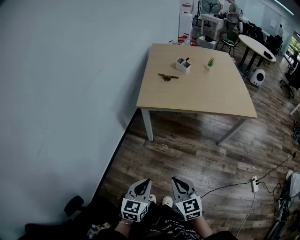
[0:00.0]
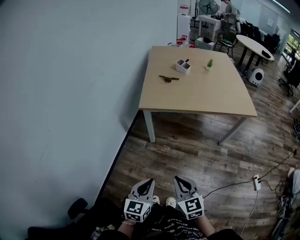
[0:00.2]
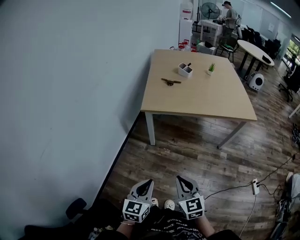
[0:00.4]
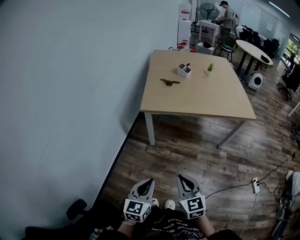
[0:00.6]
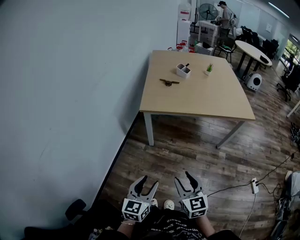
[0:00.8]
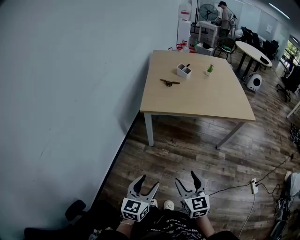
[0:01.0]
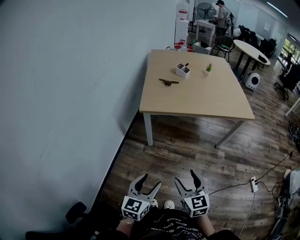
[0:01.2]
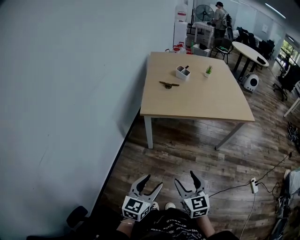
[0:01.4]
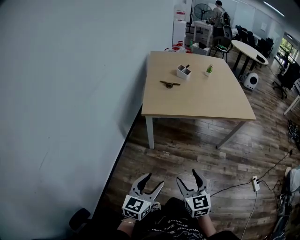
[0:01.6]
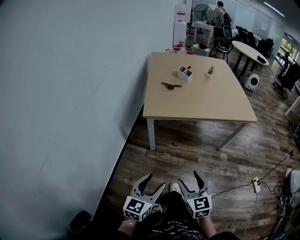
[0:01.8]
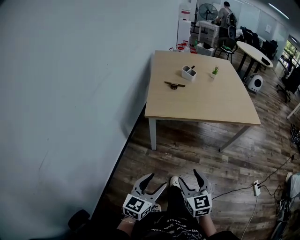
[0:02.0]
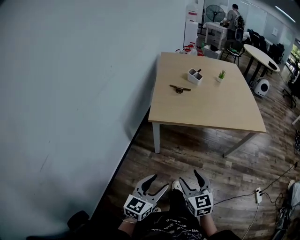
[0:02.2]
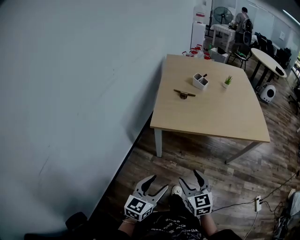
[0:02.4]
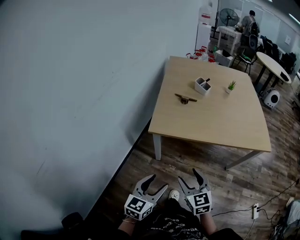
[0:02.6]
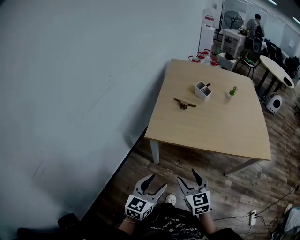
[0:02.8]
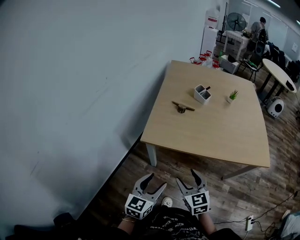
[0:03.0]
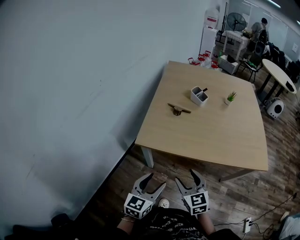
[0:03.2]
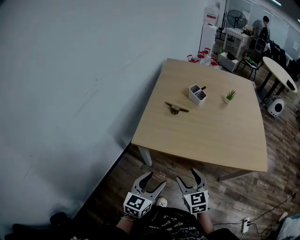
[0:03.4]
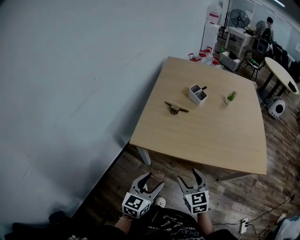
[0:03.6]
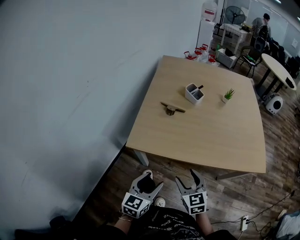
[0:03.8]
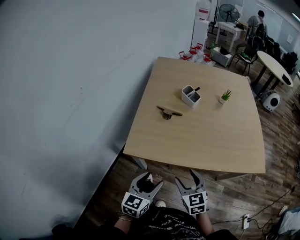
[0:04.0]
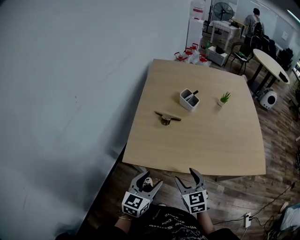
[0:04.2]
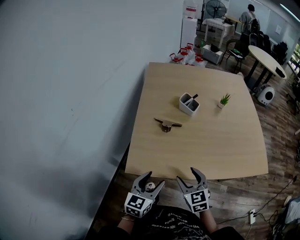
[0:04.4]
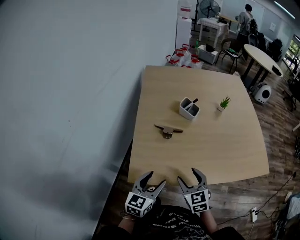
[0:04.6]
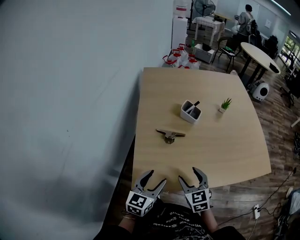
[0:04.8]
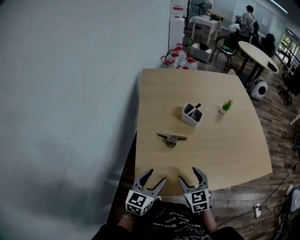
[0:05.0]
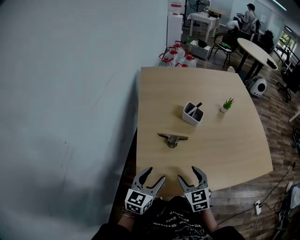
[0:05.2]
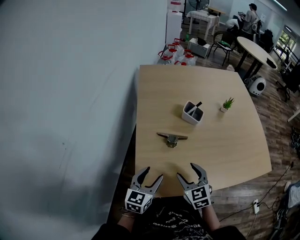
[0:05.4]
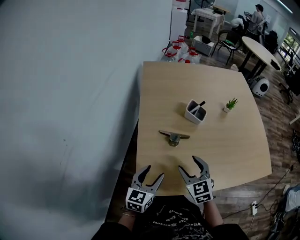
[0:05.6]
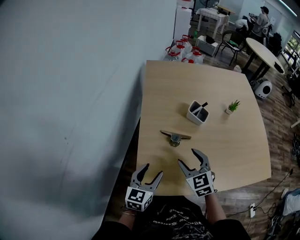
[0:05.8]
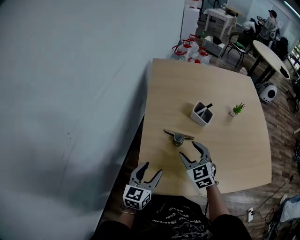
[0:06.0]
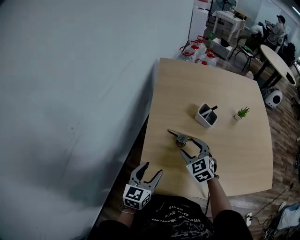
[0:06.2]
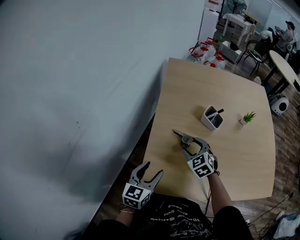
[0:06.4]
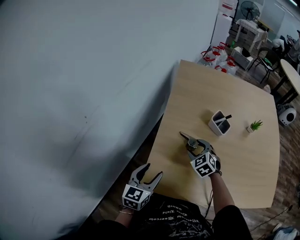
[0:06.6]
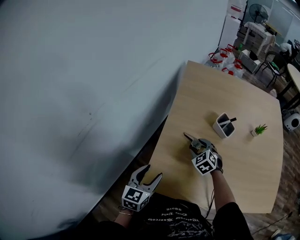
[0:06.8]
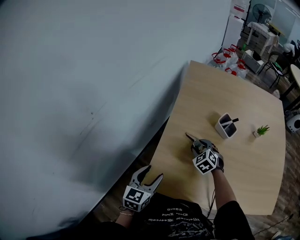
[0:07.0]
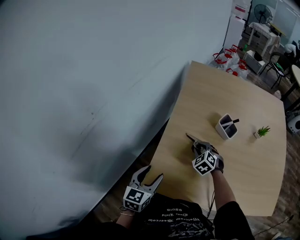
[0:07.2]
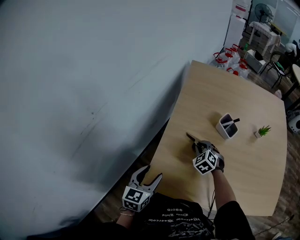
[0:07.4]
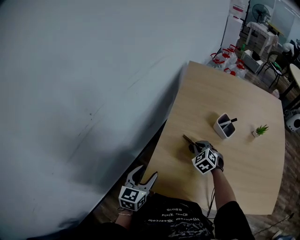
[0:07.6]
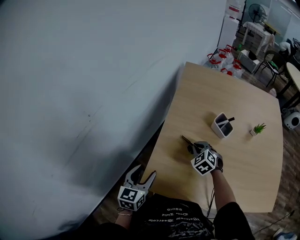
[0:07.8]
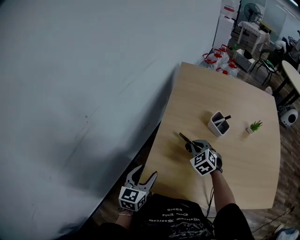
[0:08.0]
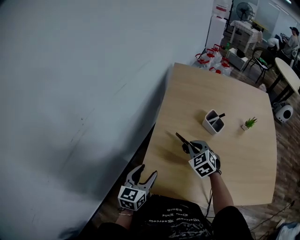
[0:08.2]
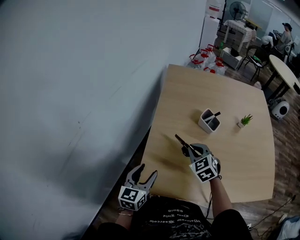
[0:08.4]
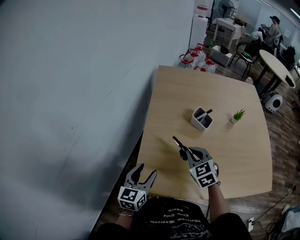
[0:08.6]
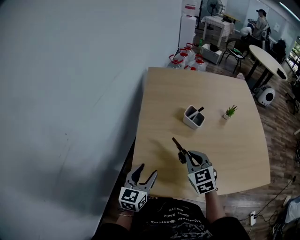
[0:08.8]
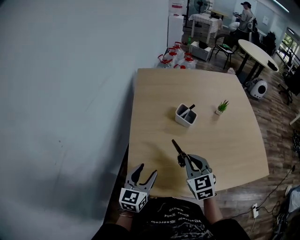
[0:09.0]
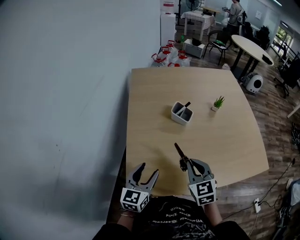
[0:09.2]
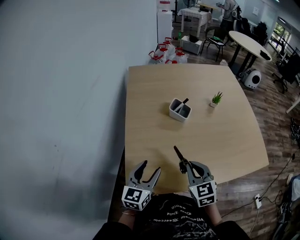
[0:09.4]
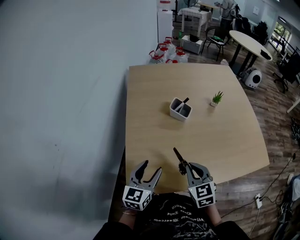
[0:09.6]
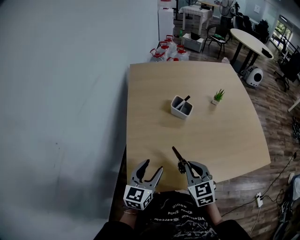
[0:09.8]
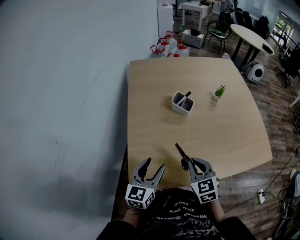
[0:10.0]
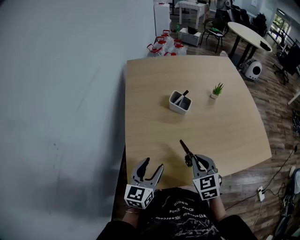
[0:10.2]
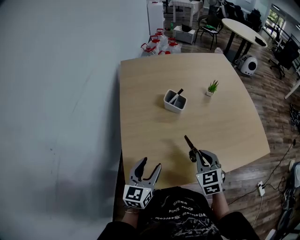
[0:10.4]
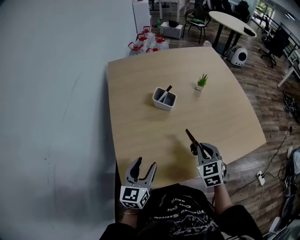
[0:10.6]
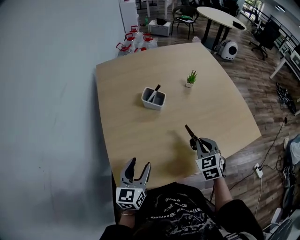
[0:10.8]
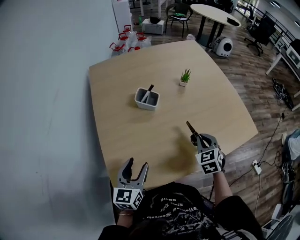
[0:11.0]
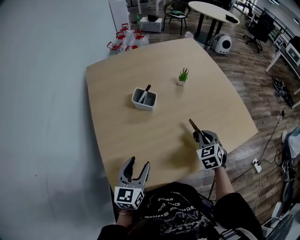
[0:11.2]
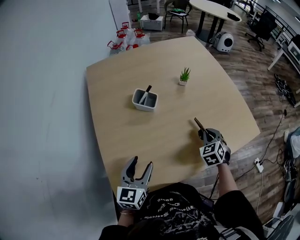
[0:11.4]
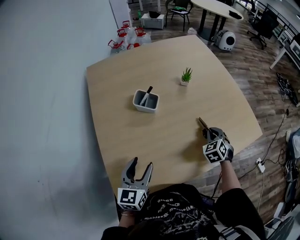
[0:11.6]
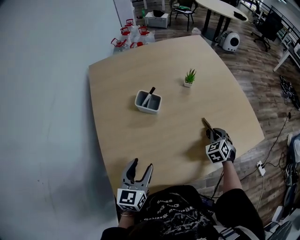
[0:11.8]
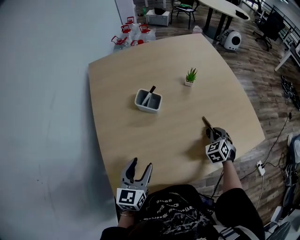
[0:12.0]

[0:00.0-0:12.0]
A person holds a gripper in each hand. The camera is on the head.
0.0 to 1.6 s: The right gripper opens up. The left gripper moves roughly 5 cm, and opens its fingers.
1.6 to 3.0 s: The two grippers go roughly 25 cm forward.
3.0 to 4.4 s: Both grippers travel together forward, about 20 cm.
4.4 to 6.0 s: Both grippers move forward and to the left, some 20 cm.
6.0 to 7.6 s: The left gripper shifts some 5 cm to the left, while the right gripper moves downward and forward, some 10 cm, rotates about 30 degrees, and closes up.
7.6 to 9.0 s: The right gripper is displaced upward, backward and to the right by roughly 20 cm, and rotates about 40 degrees; the left gripper goes approximately 10 cm to the right, and swivels approximately 20 degrees.
9.0 to 10.4 s: The right gripper moves to the right, approximately 10 cm.
10.4 to 12.0 s: The right gripper heads to the right, forward and downward, covering approximately 30 cm, and rotates approximately 30 degrees; the left gripper heads forward, covering roughly 10 cm.

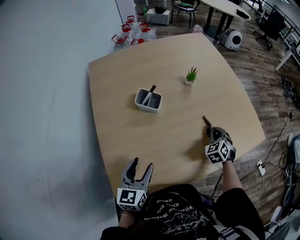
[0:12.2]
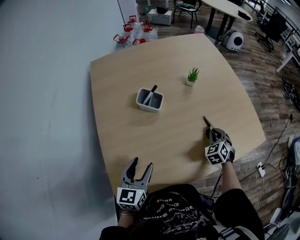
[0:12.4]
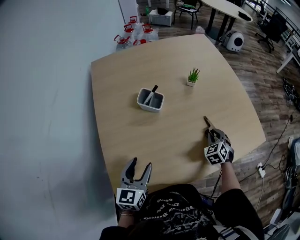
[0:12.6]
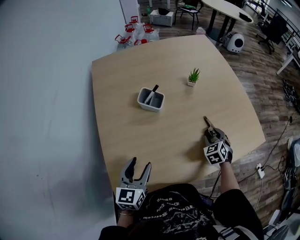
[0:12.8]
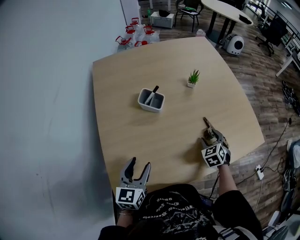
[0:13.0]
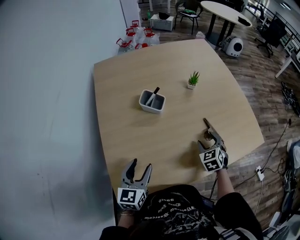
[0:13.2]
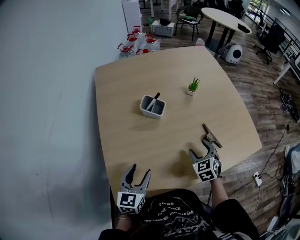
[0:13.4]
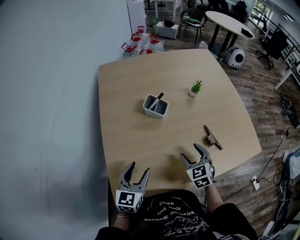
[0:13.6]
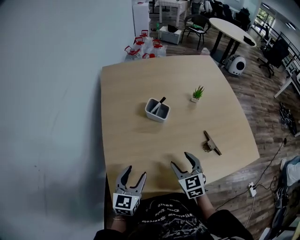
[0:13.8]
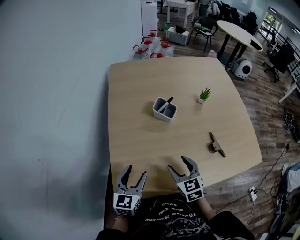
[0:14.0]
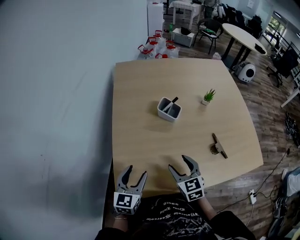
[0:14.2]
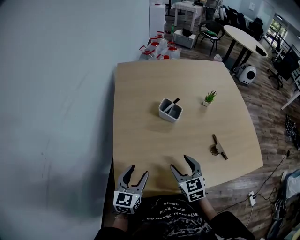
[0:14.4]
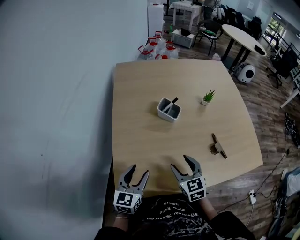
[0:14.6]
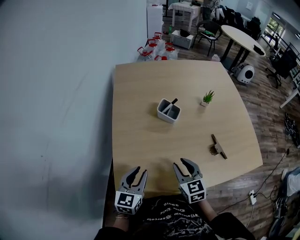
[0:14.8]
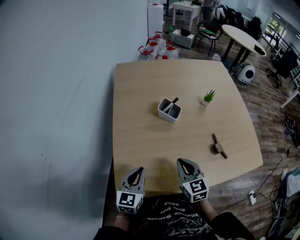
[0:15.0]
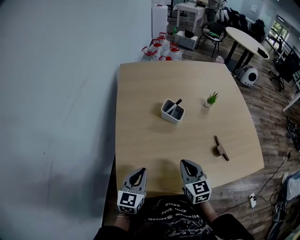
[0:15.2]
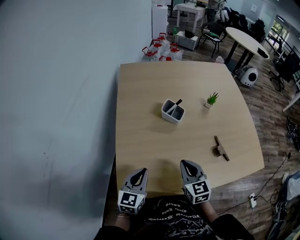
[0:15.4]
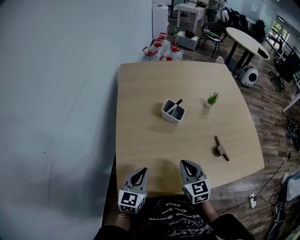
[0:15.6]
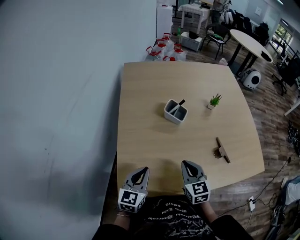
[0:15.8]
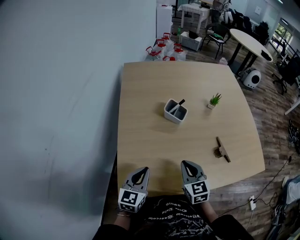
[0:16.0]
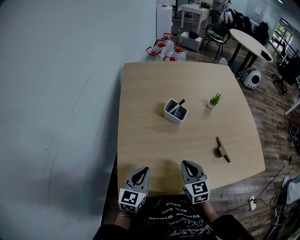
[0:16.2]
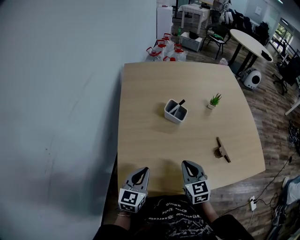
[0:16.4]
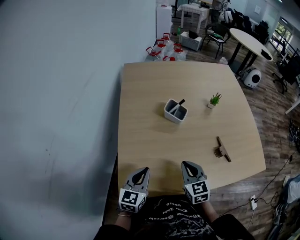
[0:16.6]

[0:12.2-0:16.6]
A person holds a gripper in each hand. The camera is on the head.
12.2 to 13.6 s: The right gripper travels to the left and backward by roughly 20 cm, turns by approximately 30 degrees, and opens its fingers.
13.6 to 15.2 s: The left gripper ends up roughly 5 cm from where it was, and closes its fingers; the right gripper is displaced to the left by some 10 cm, changes its angle by roughly 20 degrees, and closes up.
15.2 to 16.6 s: The grippers stay close to where they were, moving slightly.

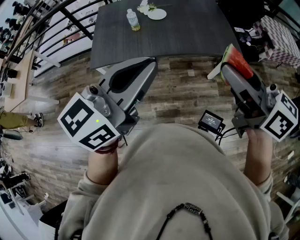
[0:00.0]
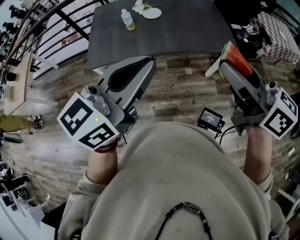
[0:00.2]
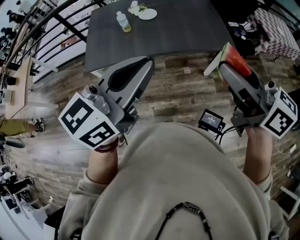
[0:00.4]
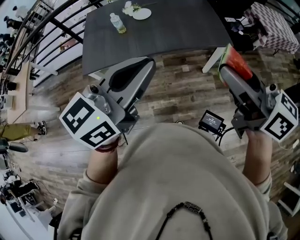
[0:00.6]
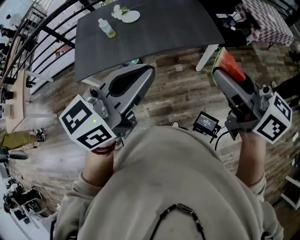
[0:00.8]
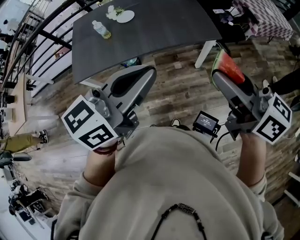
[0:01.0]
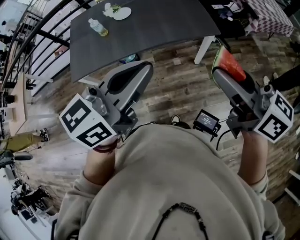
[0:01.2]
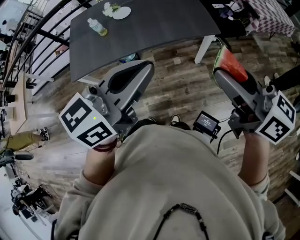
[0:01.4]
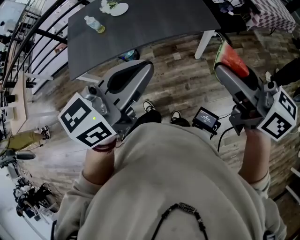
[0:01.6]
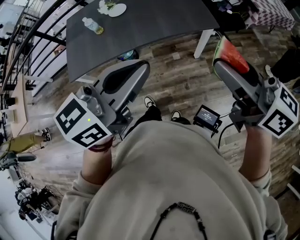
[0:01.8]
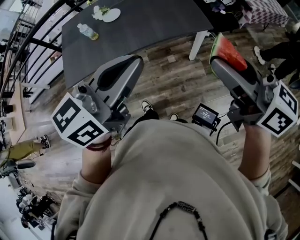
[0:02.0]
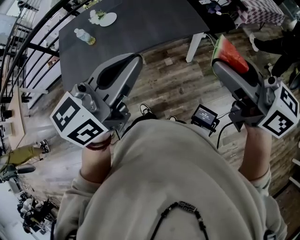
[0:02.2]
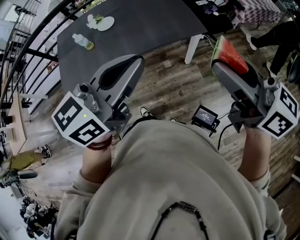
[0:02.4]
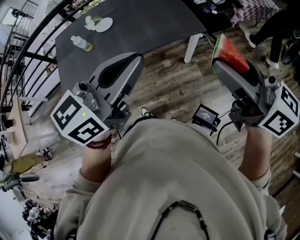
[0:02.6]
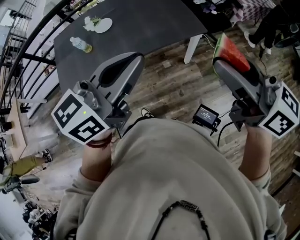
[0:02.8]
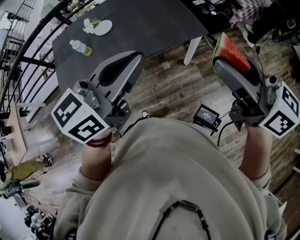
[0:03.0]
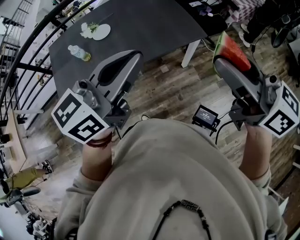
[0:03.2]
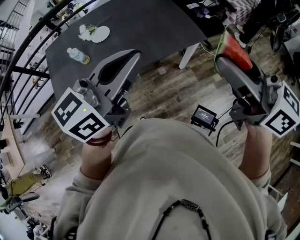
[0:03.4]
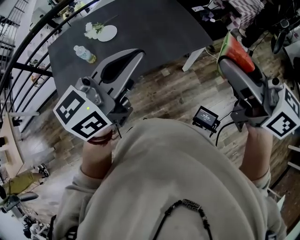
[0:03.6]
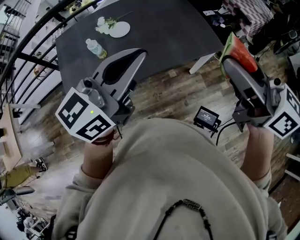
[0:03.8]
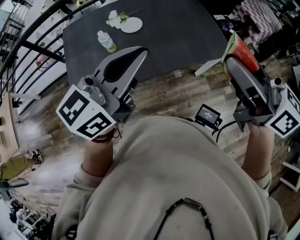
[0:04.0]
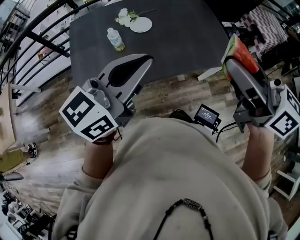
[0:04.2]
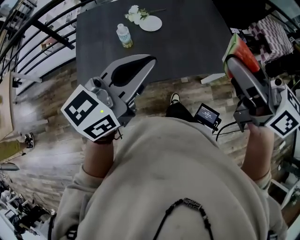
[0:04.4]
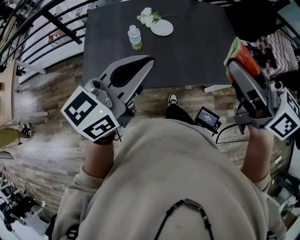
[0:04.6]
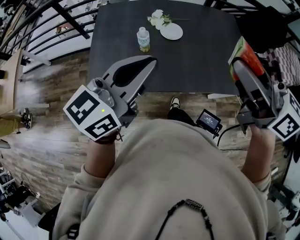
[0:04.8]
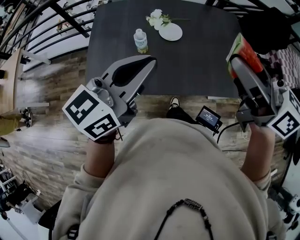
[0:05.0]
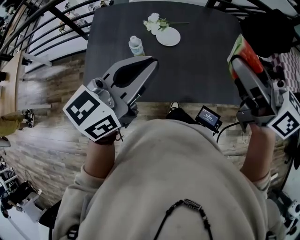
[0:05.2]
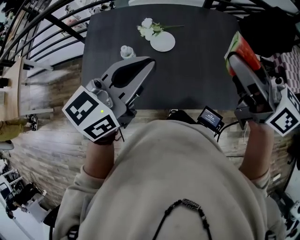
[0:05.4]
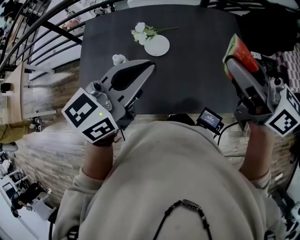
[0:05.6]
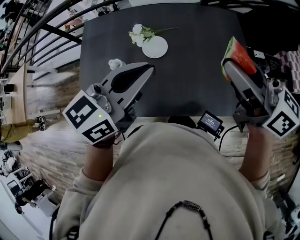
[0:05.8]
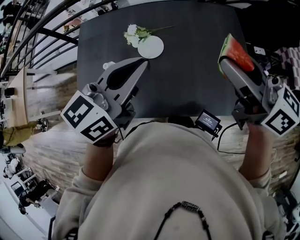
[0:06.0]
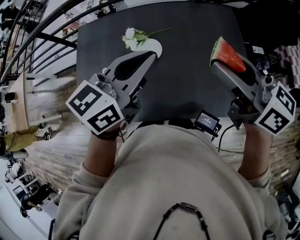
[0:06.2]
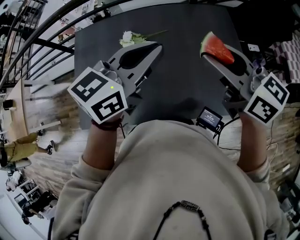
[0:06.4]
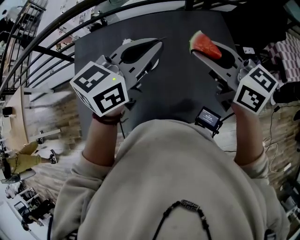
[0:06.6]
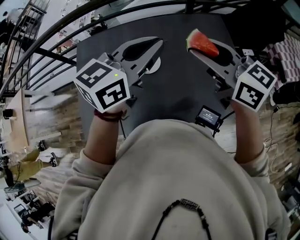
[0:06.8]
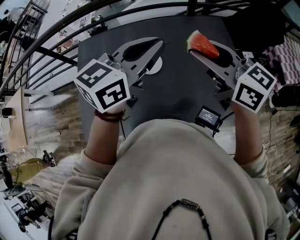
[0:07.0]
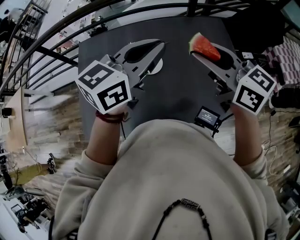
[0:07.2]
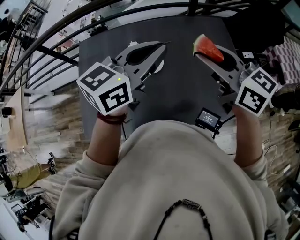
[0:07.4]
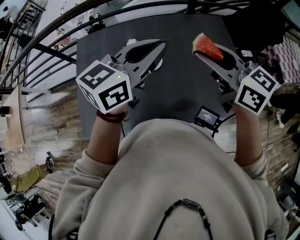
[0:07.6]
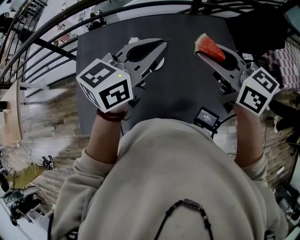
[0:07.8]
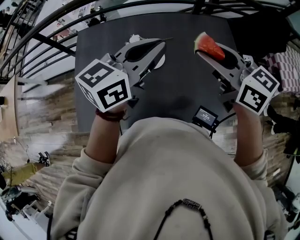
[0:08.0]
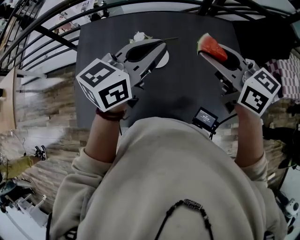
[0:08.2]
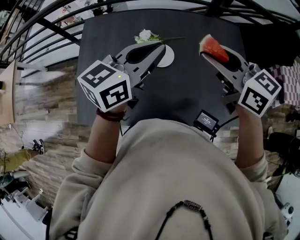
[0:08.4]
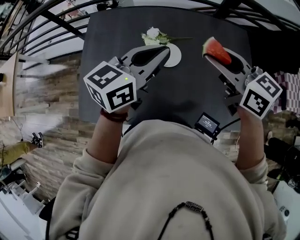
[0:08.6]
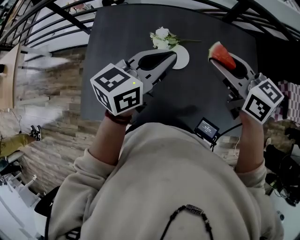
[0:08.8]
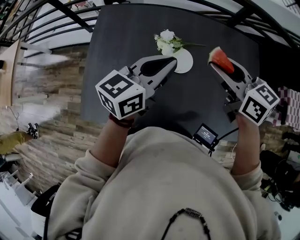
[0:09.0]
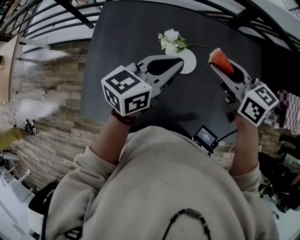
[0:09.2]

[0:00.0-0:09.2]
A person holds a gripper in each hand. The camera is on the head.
0.0 to 1.6 s: Both grippers move to the right, roughly 15 cm.
1.6 to 3.0 s: The left gripper moves forward, approximately 10 cm; the right gripper moves forward, approximately 5 cm.
3.0 to 4.6 s: The left gripper travels to the left by about 30 cm. The right gripper moves to the left and forward, some 35 cm.
4.6 to 6.2 s: The two grippers go roughly 30 cm forward and to the right.
6.2 to 7.6 s: The grippers stay close to where they were, moving slightly.
7.6 to 9.2 s: The left gripper shifts about 15 cm downward. The right gripper shifts some 15 cm downward and forward.
